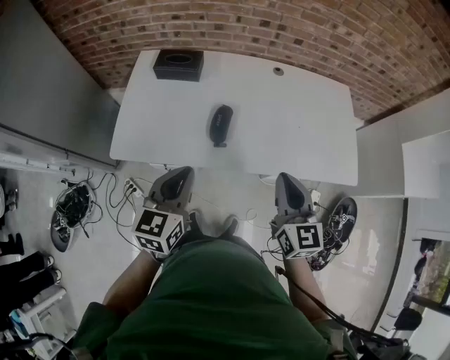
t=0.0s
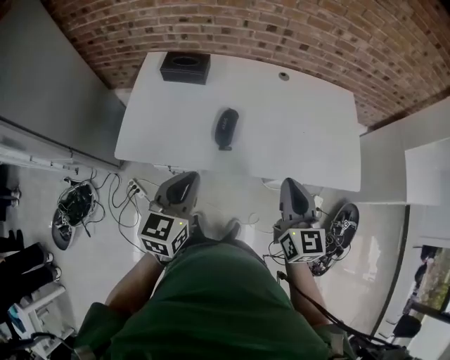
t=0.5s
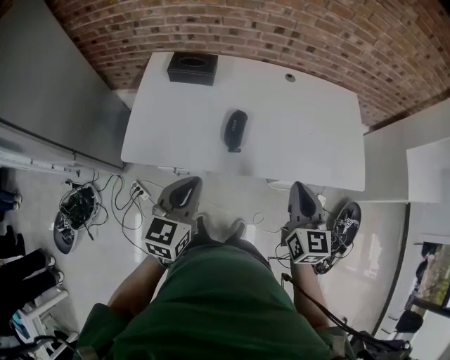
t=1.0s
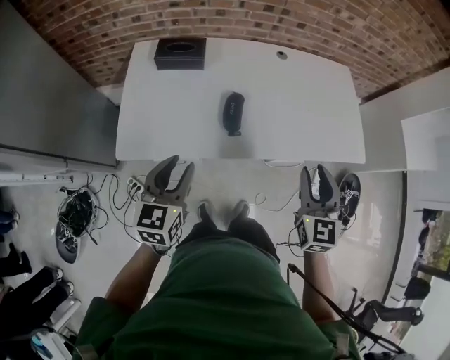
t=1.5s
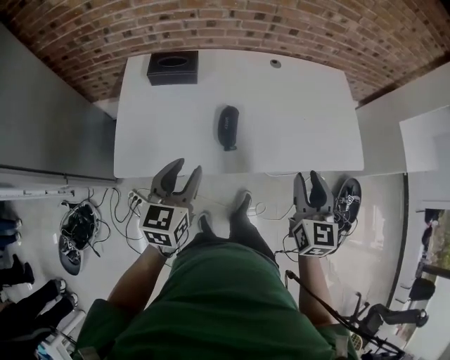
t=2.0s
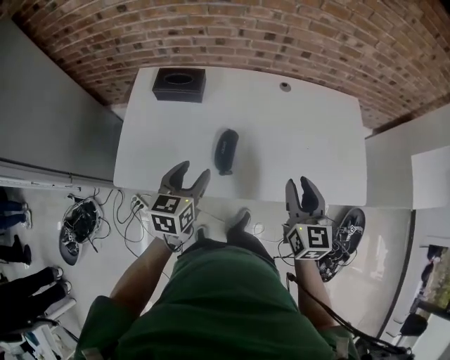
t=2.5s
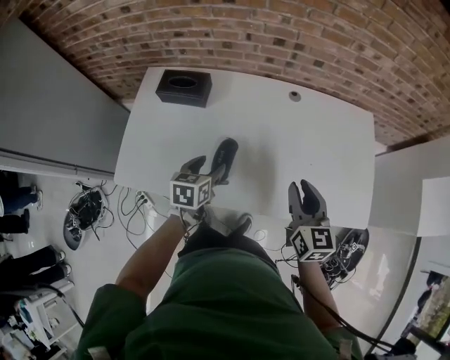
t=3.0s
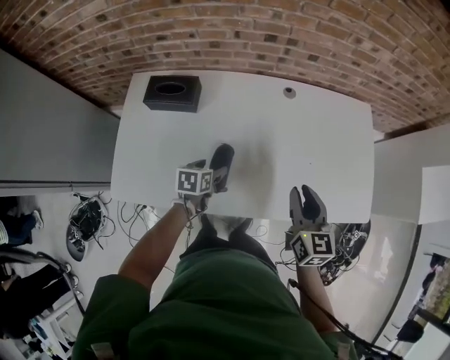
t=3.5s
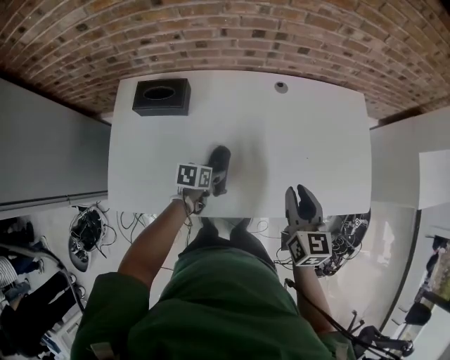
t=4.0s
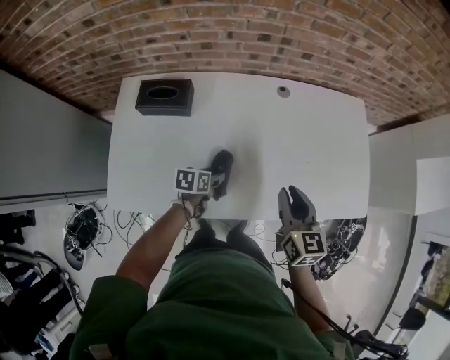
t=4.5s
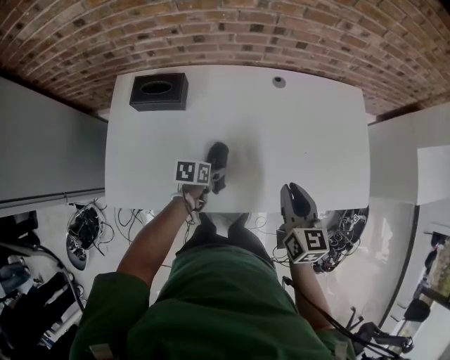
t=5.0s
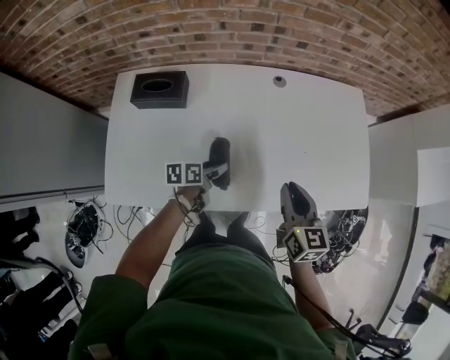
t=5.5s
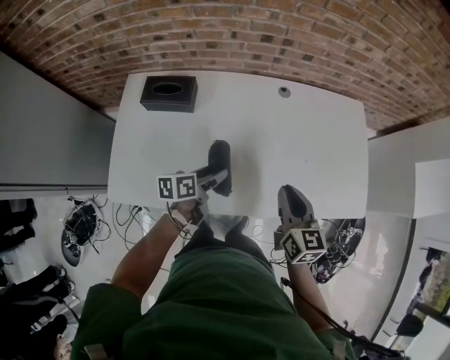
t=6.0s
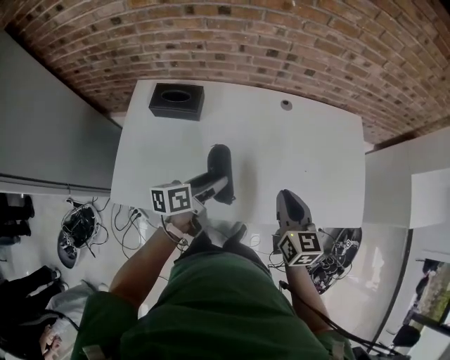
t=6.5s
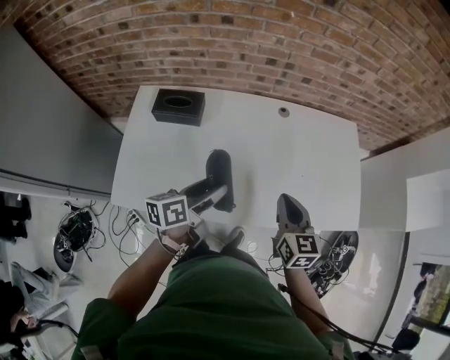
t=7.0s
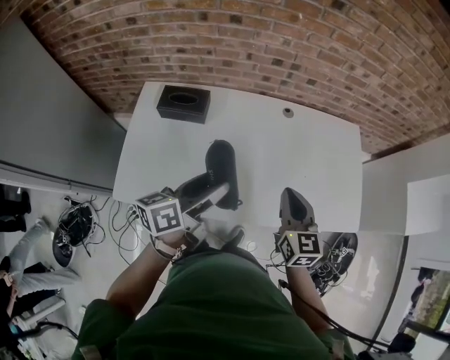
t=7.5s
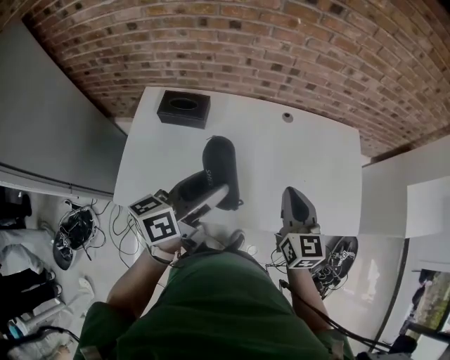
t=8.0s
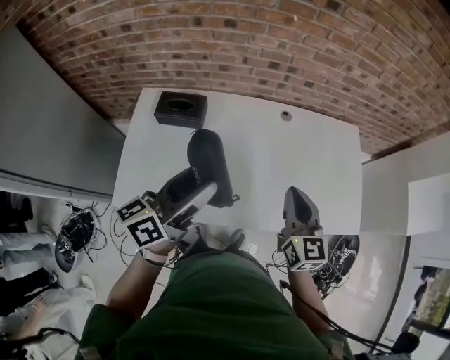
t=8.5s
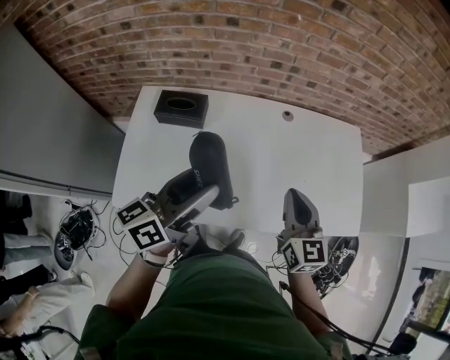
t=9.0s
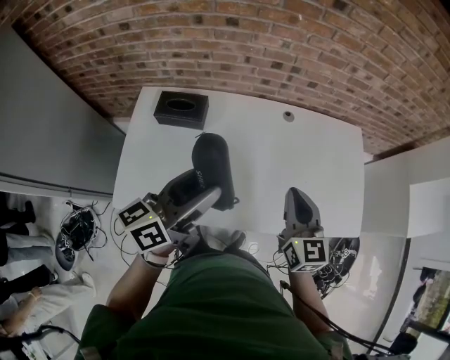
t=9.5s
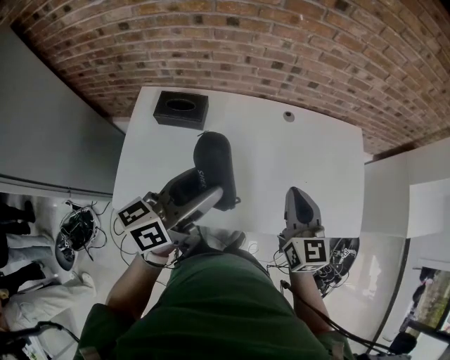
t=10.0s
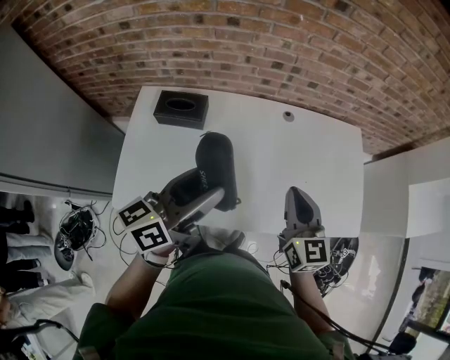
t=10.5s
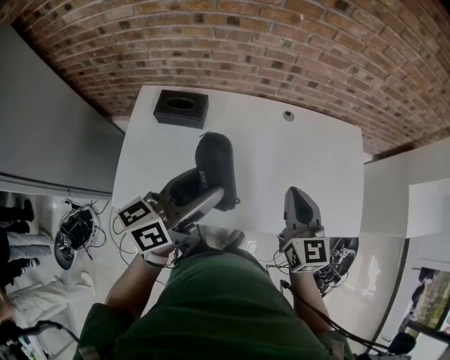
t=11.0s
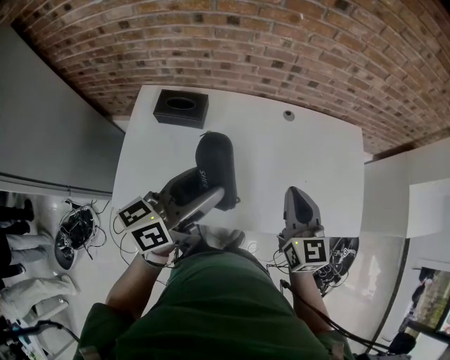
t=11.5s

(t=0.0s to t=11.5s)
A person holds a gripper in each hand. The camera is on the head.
t=0.0s - t=2.0s: The right gripper opens up. The left gripper moves to the left, some 5 cm, and opens.
t=2.0s - t=4.0s: The left gripper shifts roughly 30 cm downward and forward, points its fingers some 30 degrees further downward, and opens. Meanwhile the right gripper moves forward, some 15 cm.
t=4.0s - t=6.0s: The left gripper is displaced upward by about 10 cm, and turns by roughly 30 degrees.
t=6.0s - t=7.5s: The left gripper goes approximately 20 cm upward, and turns by some 30 degrees. The right gripper heads upward, covering some 5 cm.
t=7.5s - t=9.5s: The left gripper goes approximately 10 cm upward.
t=9.5s - t=11.5s: Neither gripper changes place.

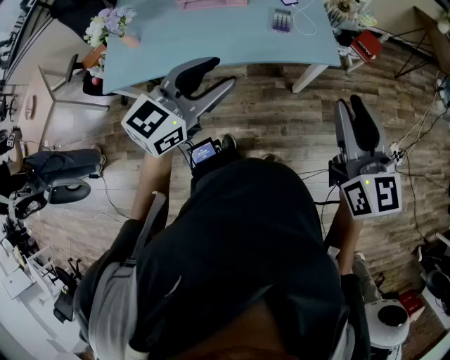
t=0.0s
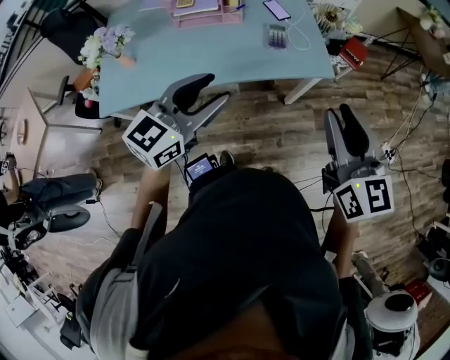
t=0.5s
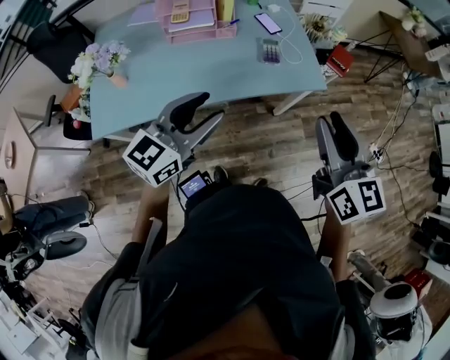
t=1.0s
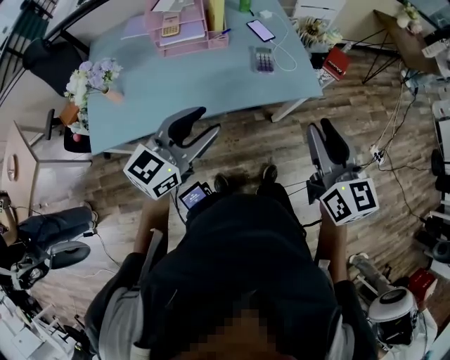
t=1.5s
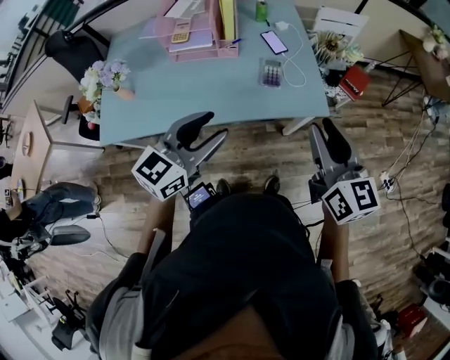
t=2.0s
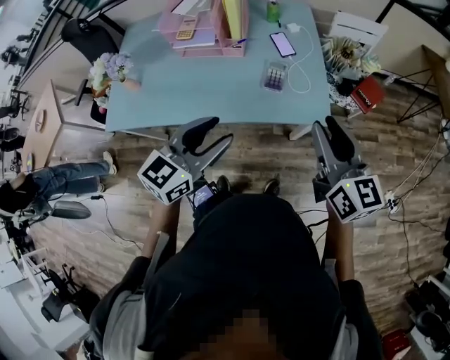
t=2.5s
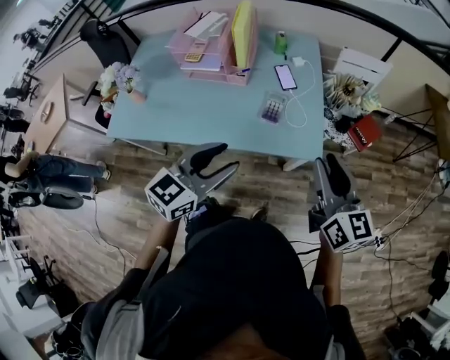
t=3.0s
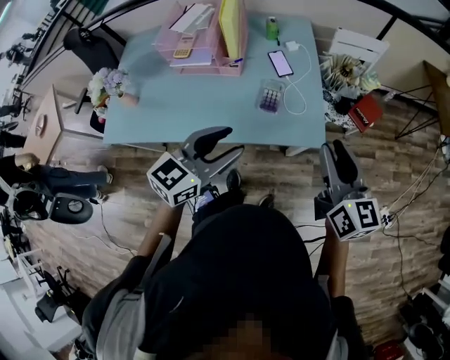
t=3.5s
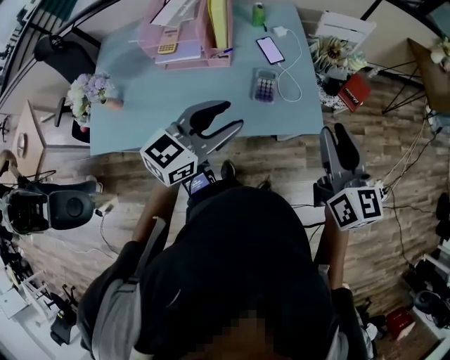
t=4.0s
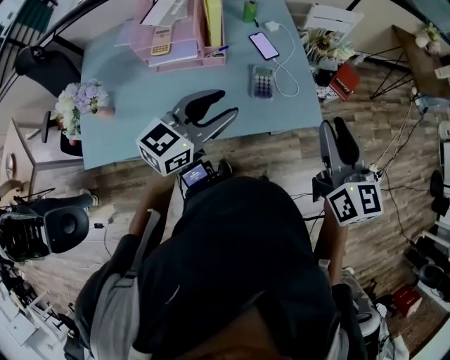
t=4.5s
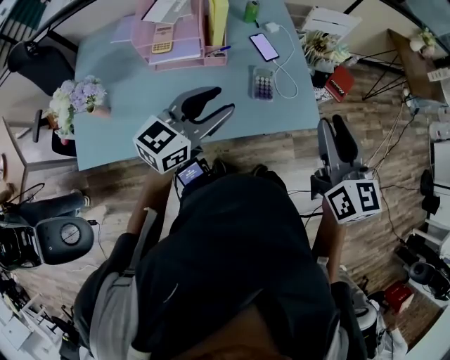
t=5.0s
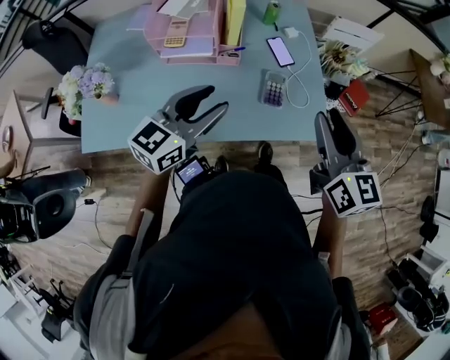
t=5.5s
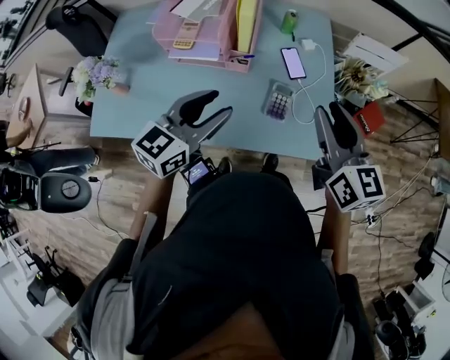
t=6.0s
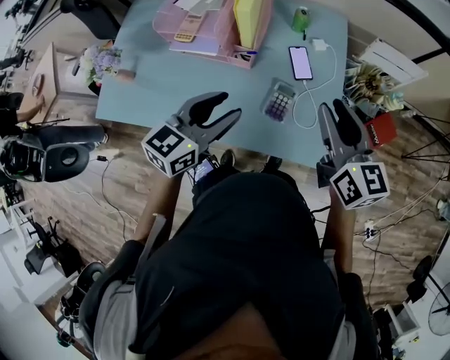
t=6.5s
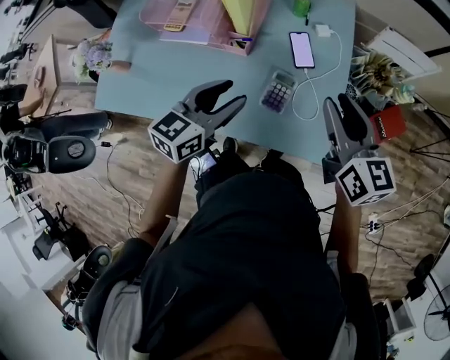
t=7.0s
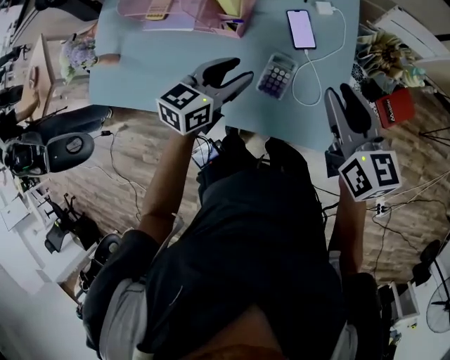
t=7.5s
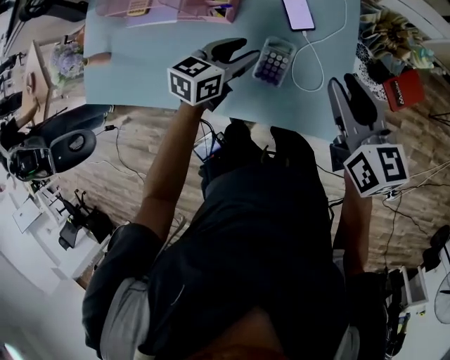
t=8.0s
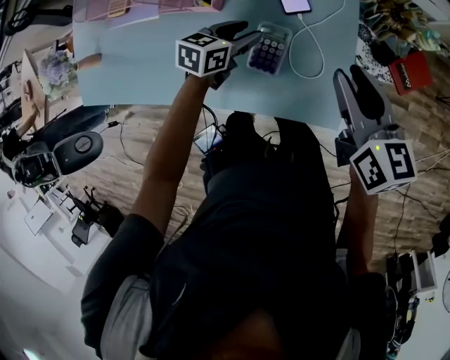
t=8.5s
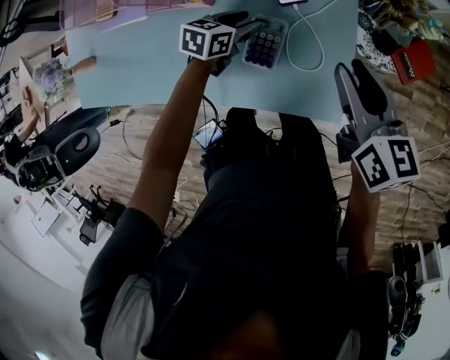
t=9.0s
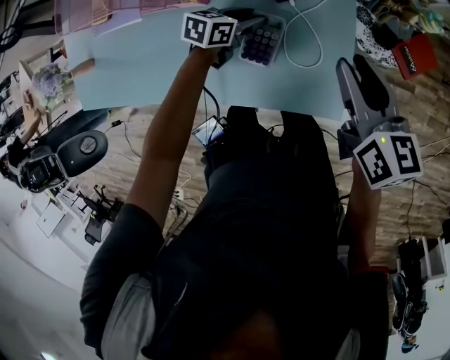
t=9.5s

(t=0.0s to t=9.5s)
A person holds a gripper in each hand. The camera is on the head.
t=0.0s - t=2.0s: The right gripper travels forward and to the left by roughly 15 cm, while the left gripper moves forward, roughly 10 cm, and reaches about 10 cm to the left, then returns.
t=2.0s - t=4.0s: Both grippers travel together forward, roughly 10 cm.
t=4.0s - t=5.5s: Both grippers move to the left, about 10 cm.
t=5.5s - t=7.5s: The left gripper shifts approximately 25 cm downward, forward and to the right, and turns by some 20 degrees. The right gripper heads forward, downward and to the right, covering roughly 25 cm, and rotates roughly 20 degrees.
t=7.5s - t=9.5s: The right gripper travels downward by roughly 10 cm; the left gripper is displaced downward by some 20 cm, and rotates roughly 30 degrees.

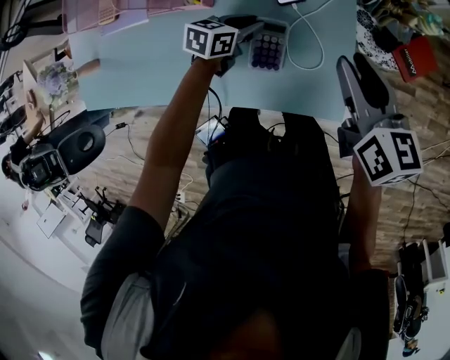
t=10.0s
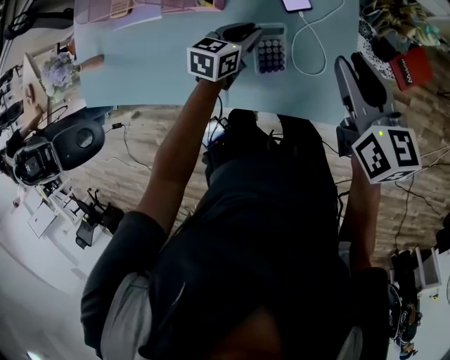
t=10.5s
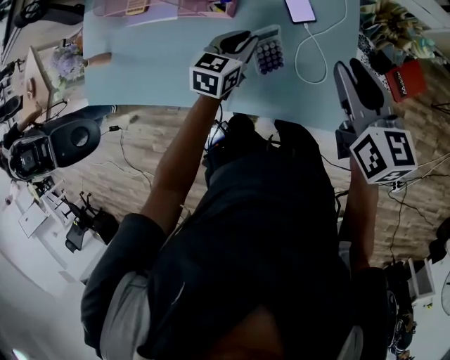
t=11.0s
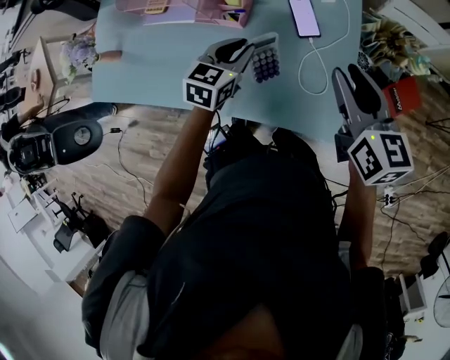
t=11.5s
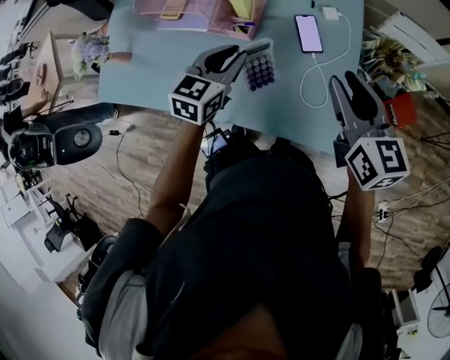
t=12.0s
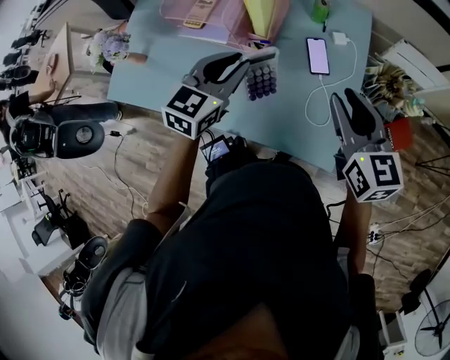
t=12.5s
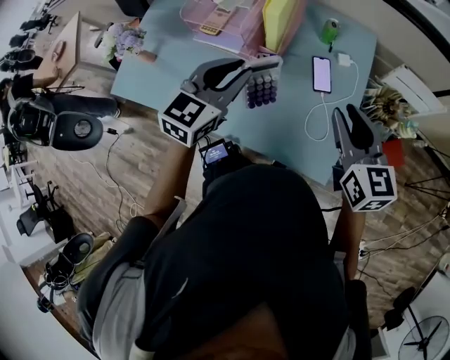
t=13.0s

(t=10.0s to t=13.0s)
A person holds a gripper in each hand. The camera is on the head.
t=10.0s - t=11.5s: The right gripper travels upward by some 5 cm; the left gripper is displaced upward and to the left by some 15 cm, and swivels approximately 30 degrees.
t=11.5s - t=13.0s: The right gripper heads upward, covering approximately 5 cm. Meanwhile the left gripper heads upward, covering about 20 cm.

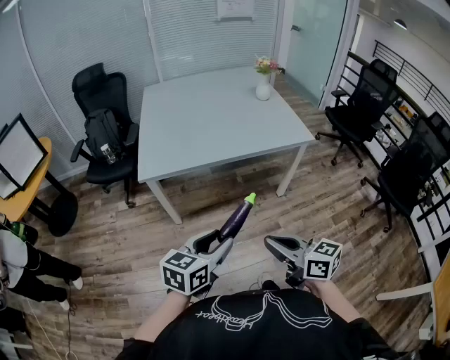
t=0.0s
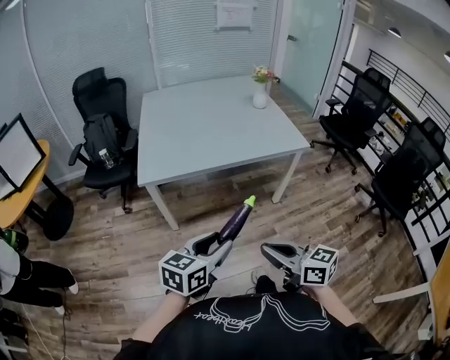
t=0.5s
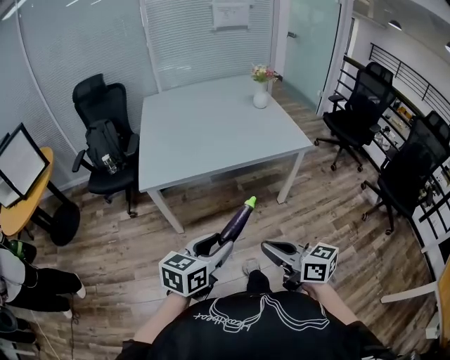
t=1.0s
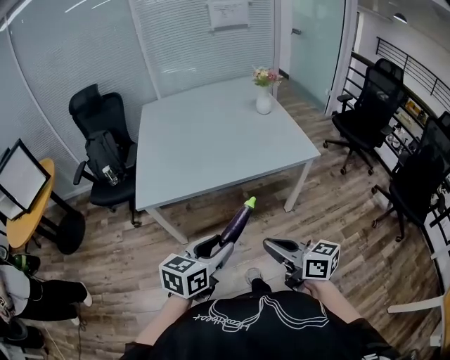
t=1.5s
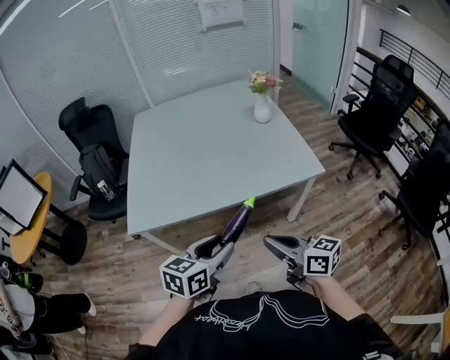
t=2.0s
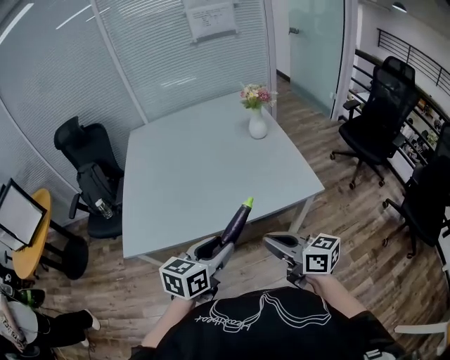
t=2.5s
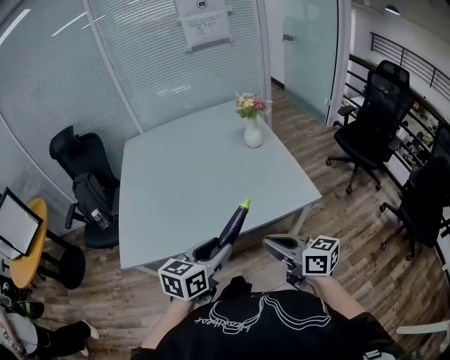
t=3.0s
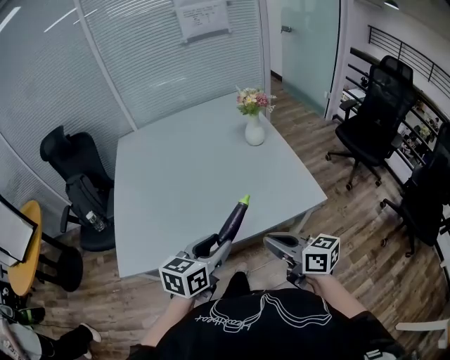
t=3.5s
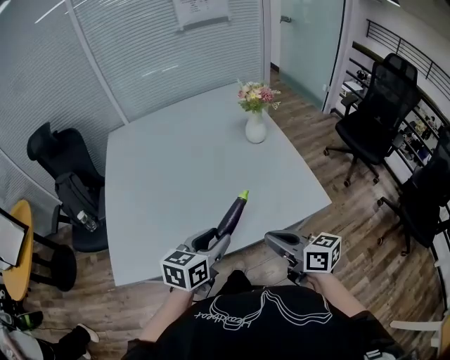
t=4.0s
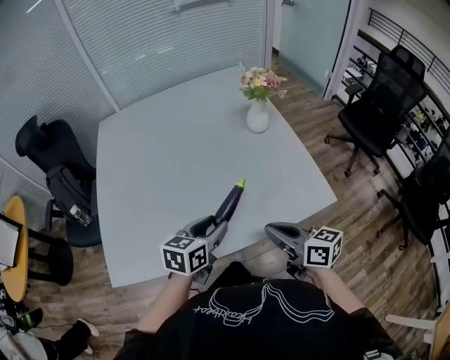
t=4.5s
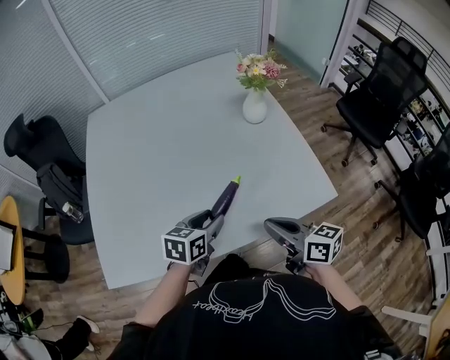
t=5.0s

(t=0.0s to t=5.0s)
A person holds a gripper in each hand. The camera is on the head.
t=0.0s - t=2.5s: Both grippers move forward and to the right, approximately 35 cm.
t=2.5s - t=5.0s: The left gripper goes some 30 cm forward and downward. Meanwhile the right gripper heads forward, covering approximately 20 cm.
